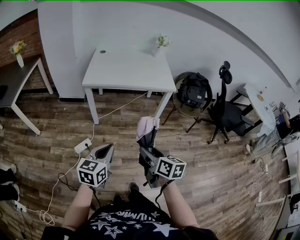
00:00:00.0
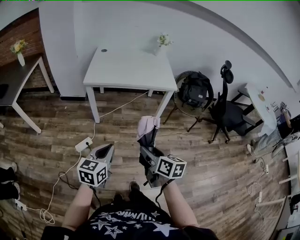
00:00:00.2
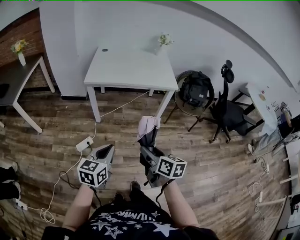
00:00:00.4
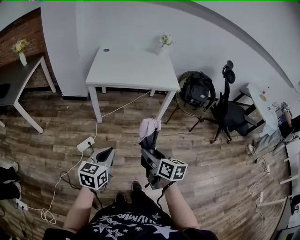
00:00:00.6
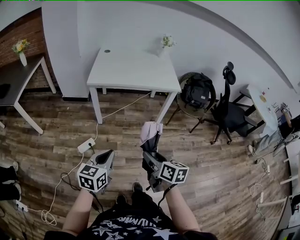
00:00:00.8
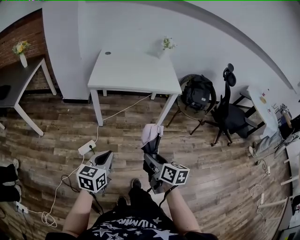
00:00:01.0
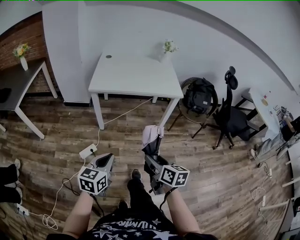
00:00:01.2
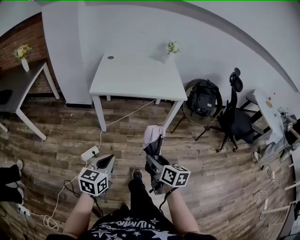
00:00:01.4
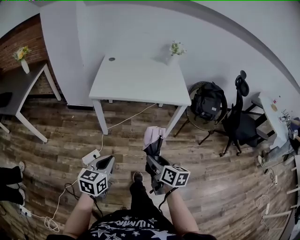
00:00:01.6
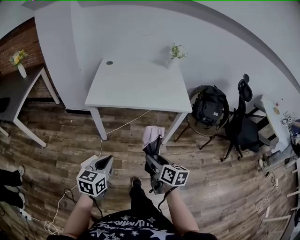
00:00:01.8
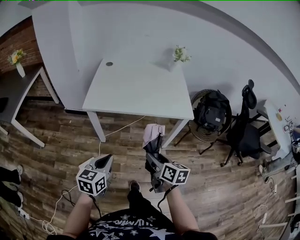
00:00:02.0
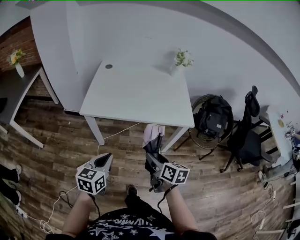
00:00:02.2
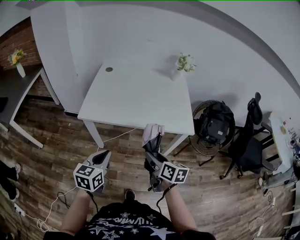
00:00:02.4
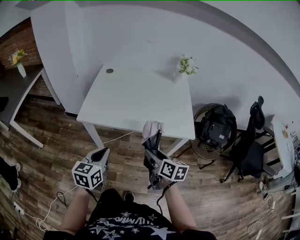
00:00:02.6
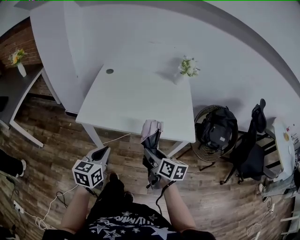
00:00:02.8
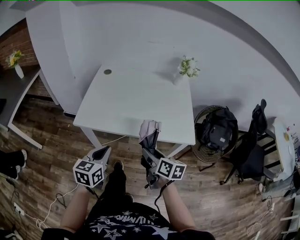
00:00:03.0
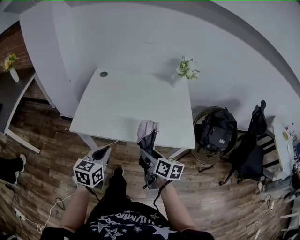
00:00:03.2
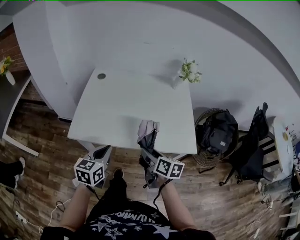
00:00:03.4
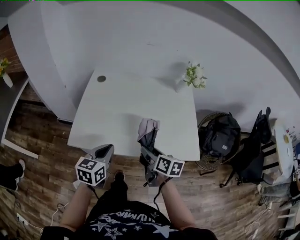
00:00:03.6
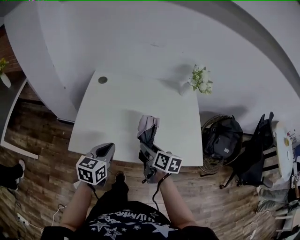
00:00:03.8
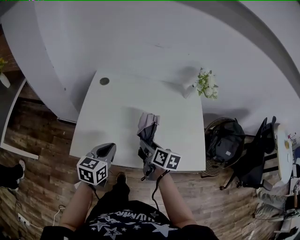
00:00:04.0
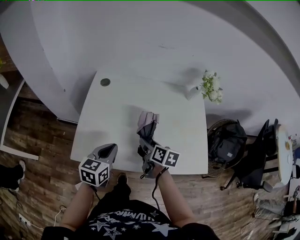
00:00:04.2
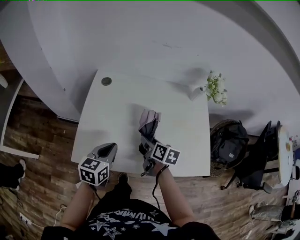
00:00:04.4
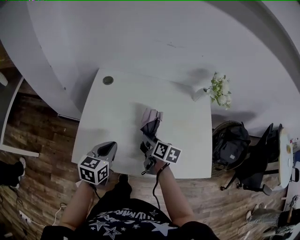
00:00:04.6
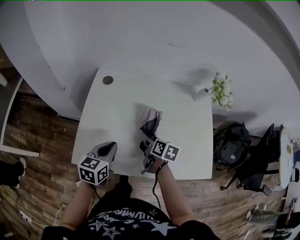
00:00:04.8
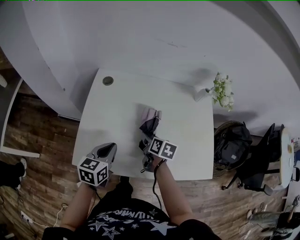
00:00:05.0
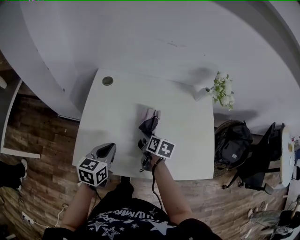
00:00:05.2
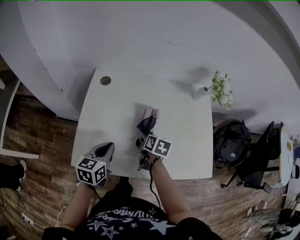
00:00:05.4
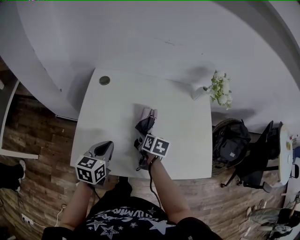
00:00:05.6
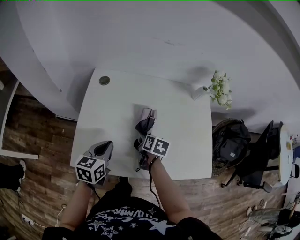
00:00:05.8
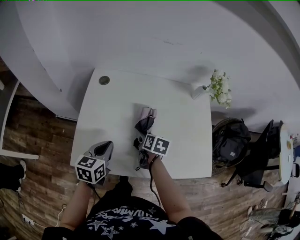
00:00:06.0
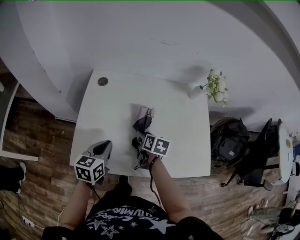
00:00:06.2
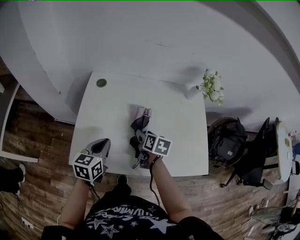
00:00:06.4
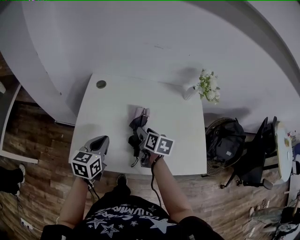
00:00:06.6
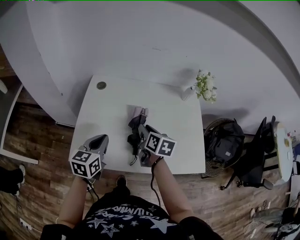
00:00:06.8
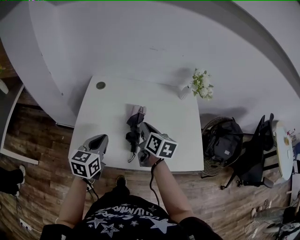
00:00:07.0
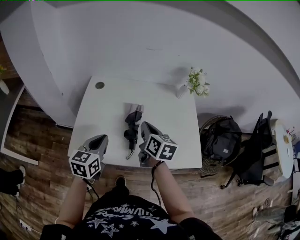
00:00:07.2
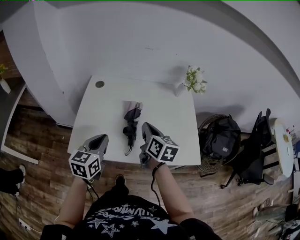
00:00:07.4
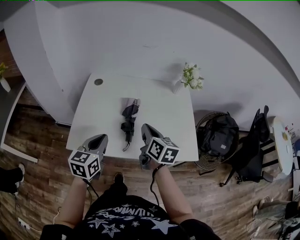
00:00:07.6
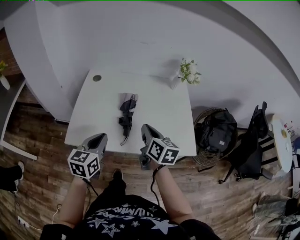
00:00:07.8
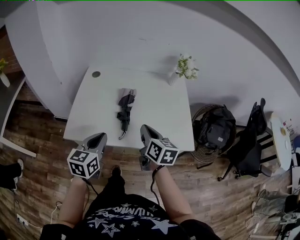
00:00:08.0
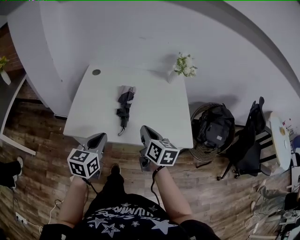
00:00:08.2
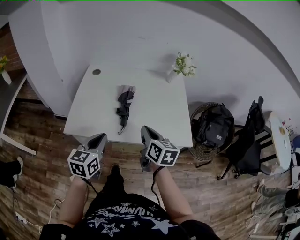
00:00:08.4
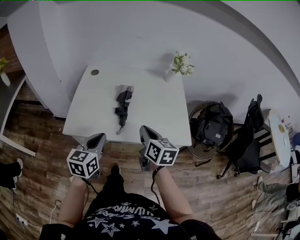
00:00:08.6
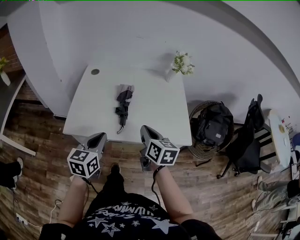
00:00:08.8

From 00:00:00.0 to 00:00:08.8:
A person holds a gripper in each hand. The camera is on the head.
From 00:00:00.0 to 00:00:01.4: The left gripper ends up about 5 cm from where it was. Meanwhile the right gripper ends up approximately 5 cm from where it was.
From 00:00:01.4 to 00:00:03.0: The two grippers go approximately 35 cm forward.
From 00:00:03.0 to 00:00:04.4: The two grippers go about 25 cm forward.
From 00:00:04.4 to 00:00:05.8: The right gripper goes some 5 cm downward.
From 00:00:05.8 to 00:00:07.4: The left gripper shifts some 10 cm upward and backward. Meanwhile the right gripper shifts some 20 cm upward and backward, turns by roughly 30 degrees, and closes up.
From 00:00:07.4 to 00:00:08.8: The grippers both shift backward by approximately 10 cm.

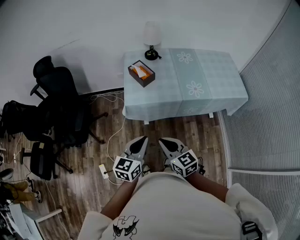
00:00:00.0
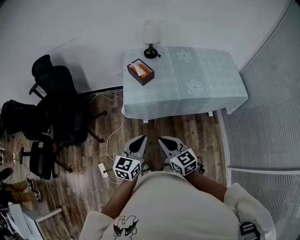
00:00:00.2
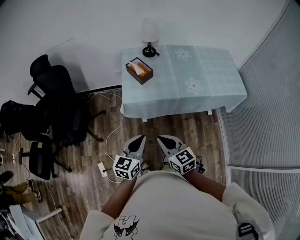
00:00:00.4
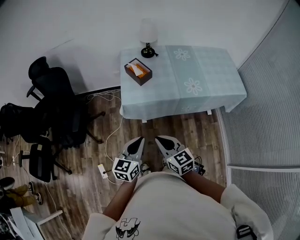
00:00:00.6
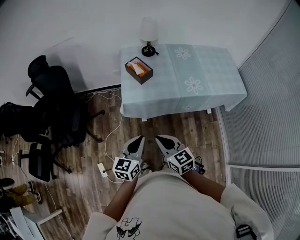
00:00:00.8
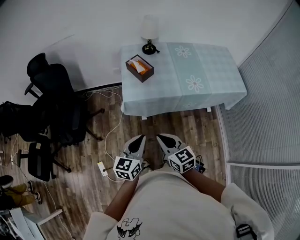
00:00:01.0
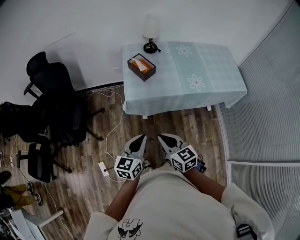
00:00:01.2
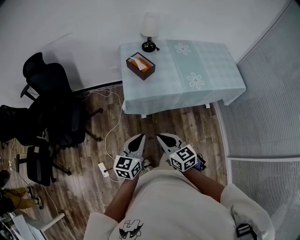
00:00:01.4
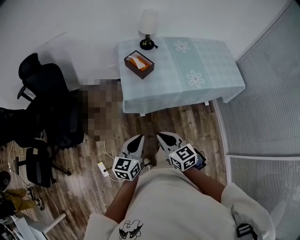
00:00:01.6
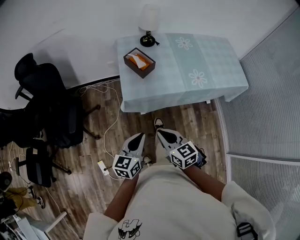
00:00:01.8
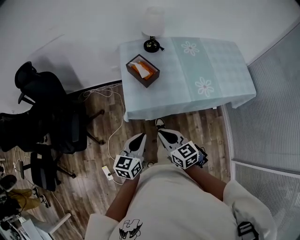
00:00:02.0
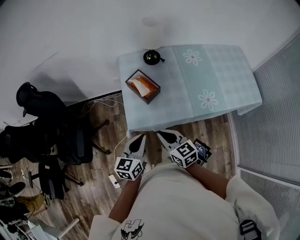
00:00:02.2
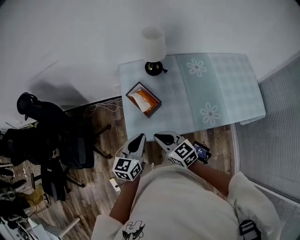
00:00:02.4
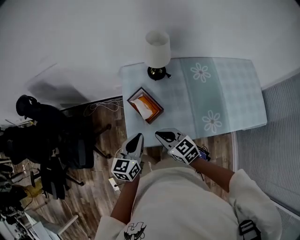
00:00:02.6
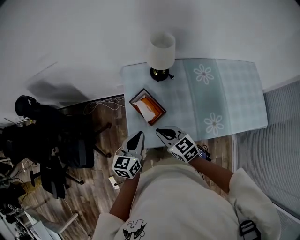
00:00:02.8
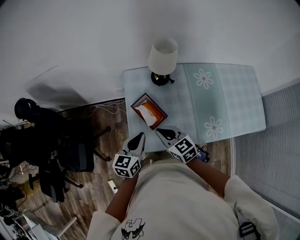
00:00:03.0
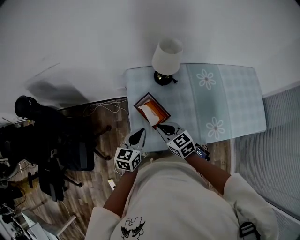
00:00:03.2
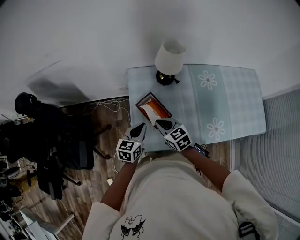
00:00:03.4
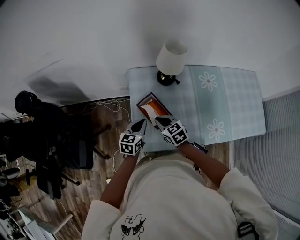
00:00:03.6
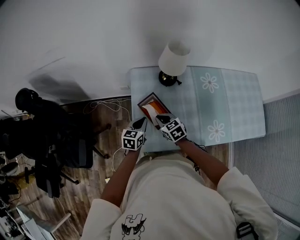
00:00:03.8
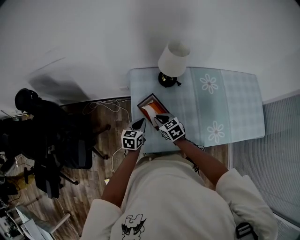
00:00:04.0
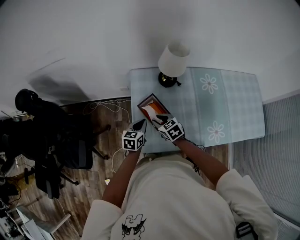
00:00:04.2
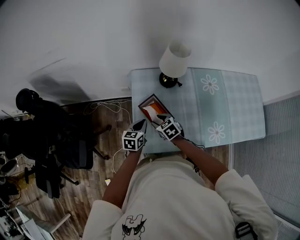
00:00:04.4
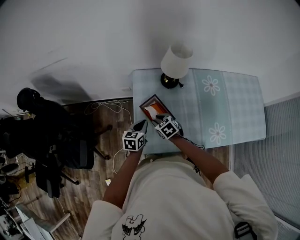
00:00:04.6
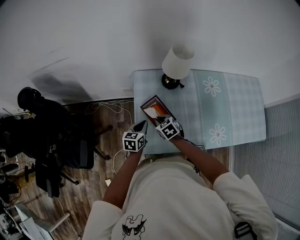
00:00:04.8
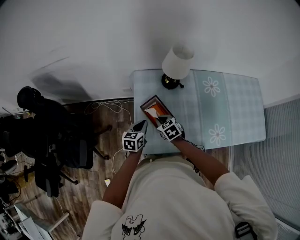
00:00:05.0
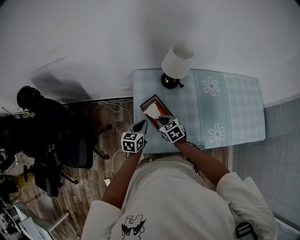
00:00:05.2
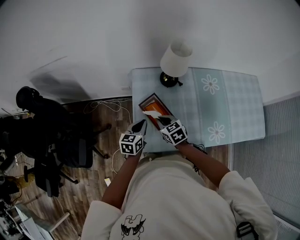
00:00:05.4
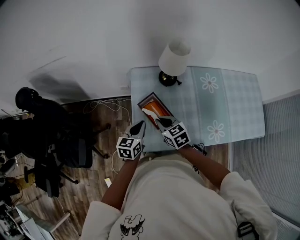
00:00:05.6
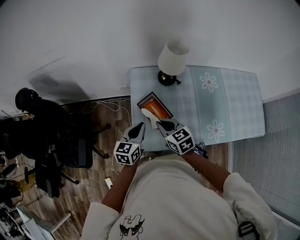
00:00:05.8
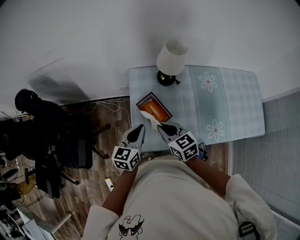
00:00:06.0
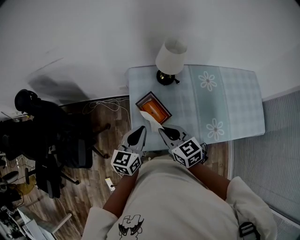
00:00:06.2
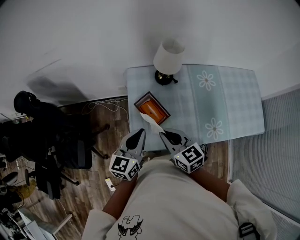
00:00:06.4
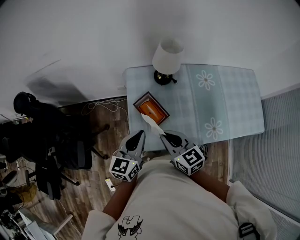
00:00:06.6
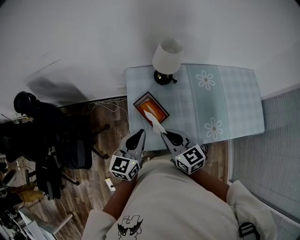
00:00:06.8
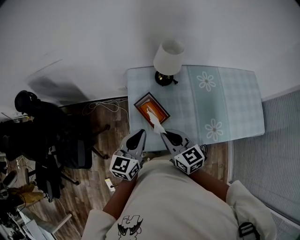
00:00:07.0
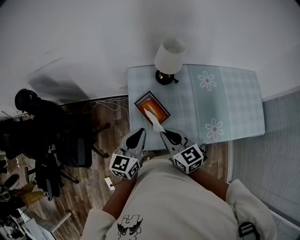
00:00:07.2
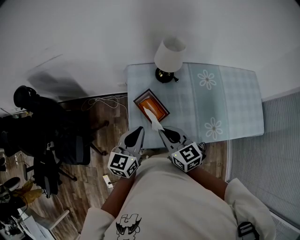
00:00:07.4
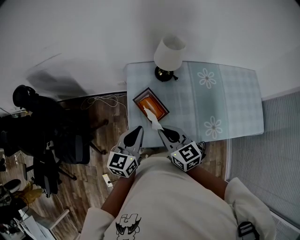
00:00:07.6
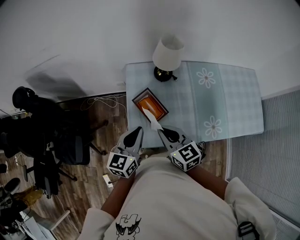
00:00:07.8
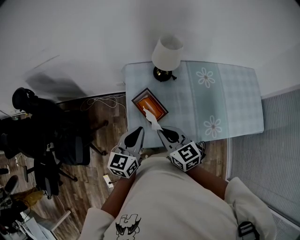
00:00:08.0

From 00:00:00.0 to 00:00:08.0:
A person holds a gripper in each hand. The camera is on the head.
From 00:00:00.0 to 00:00:01.6: Both grippers move to the left, roughly 5 cm.
From 00:00:01.6 to 00:00:03.2: The two grippers travel together, forward, some 40 cm.
From 00:00:03.2 to 00:00:04.8: The grippers both shift downward and forward by some 15 cm. The right gripper swivels approximately 20 degrees, and opens, then closes again.
From 00:00:04.8 to 00:00:06.4: The right gripper moves upward and backward, about 25 cm, and changes its angle by roughly 30 degrees. Meanwhile the left gripper travels upward by about 20 cm, and changes its angle by about 20 degrees.
From 00:00:06.4 to 00:00:08.0: The grippers make only small movements.

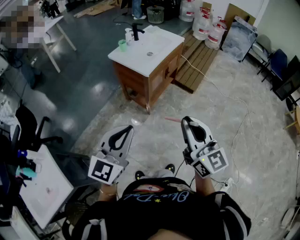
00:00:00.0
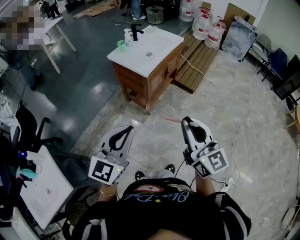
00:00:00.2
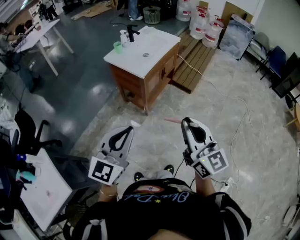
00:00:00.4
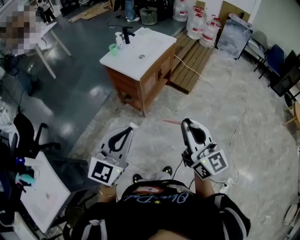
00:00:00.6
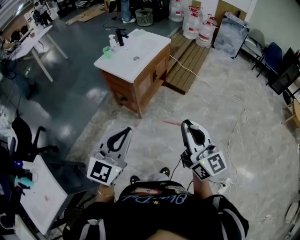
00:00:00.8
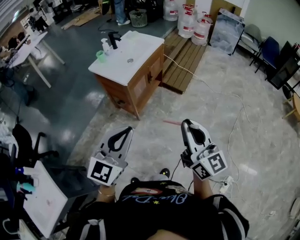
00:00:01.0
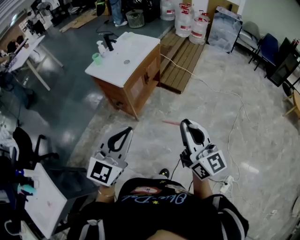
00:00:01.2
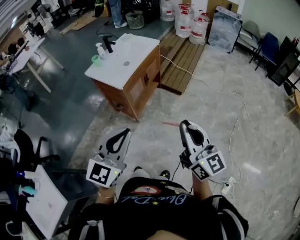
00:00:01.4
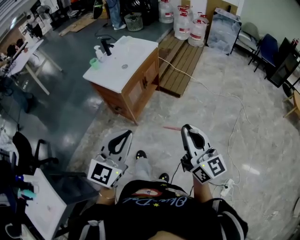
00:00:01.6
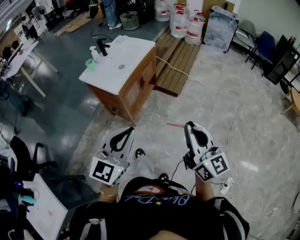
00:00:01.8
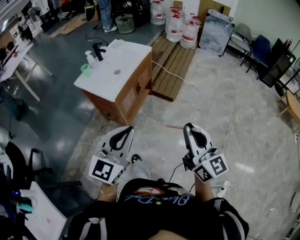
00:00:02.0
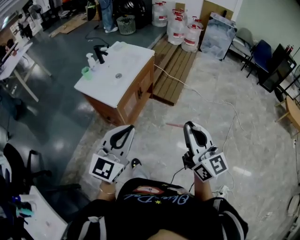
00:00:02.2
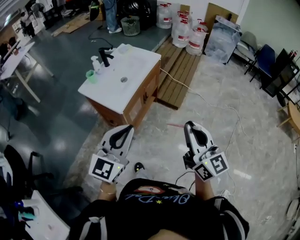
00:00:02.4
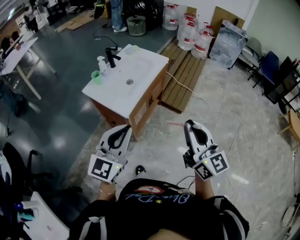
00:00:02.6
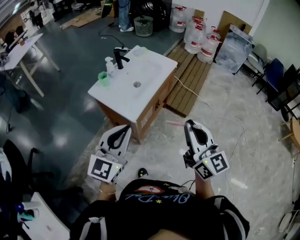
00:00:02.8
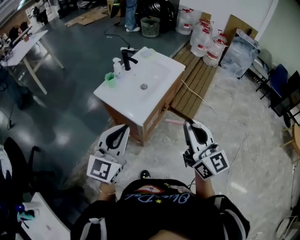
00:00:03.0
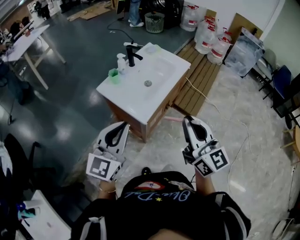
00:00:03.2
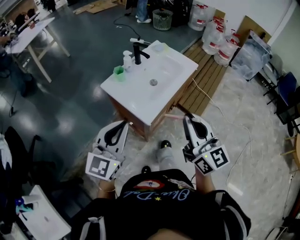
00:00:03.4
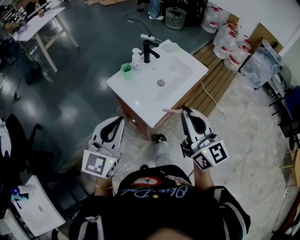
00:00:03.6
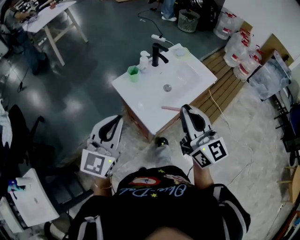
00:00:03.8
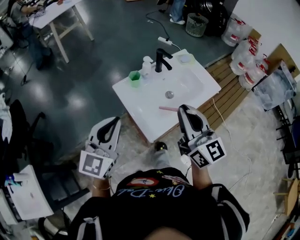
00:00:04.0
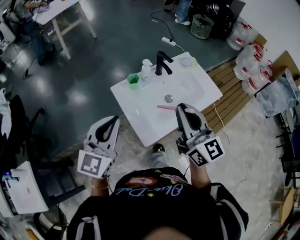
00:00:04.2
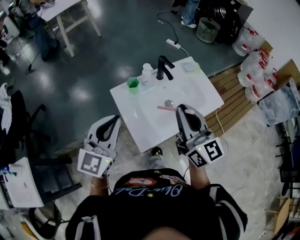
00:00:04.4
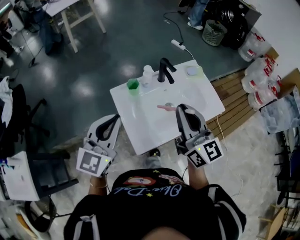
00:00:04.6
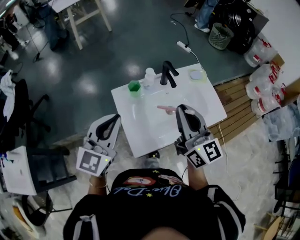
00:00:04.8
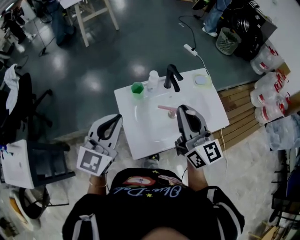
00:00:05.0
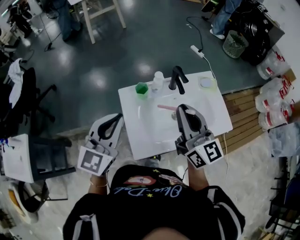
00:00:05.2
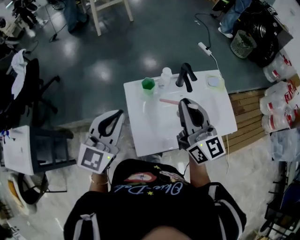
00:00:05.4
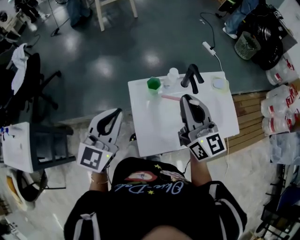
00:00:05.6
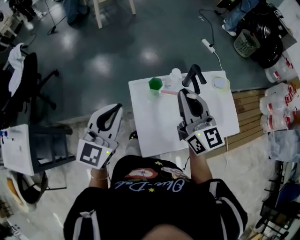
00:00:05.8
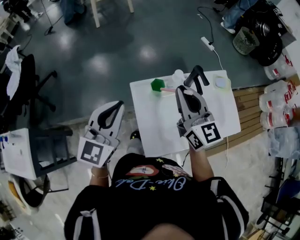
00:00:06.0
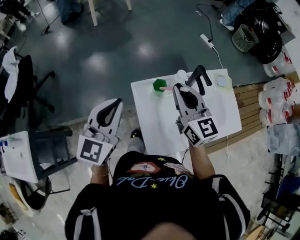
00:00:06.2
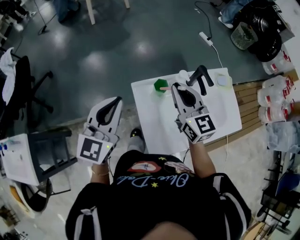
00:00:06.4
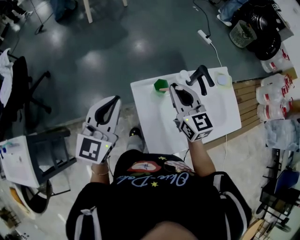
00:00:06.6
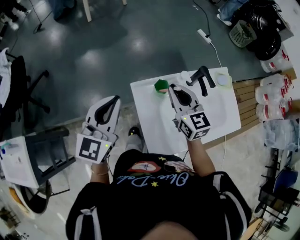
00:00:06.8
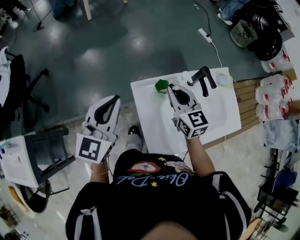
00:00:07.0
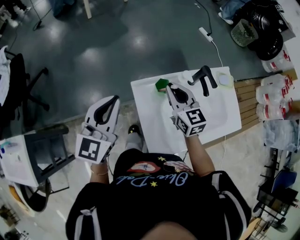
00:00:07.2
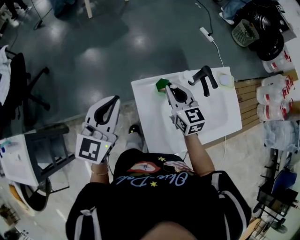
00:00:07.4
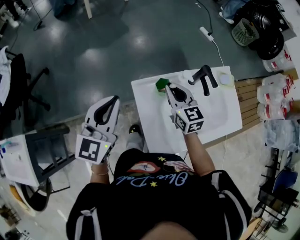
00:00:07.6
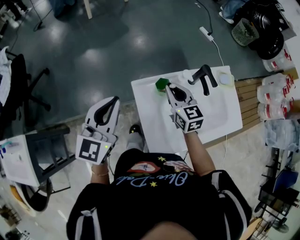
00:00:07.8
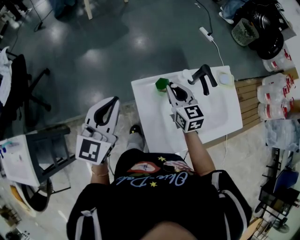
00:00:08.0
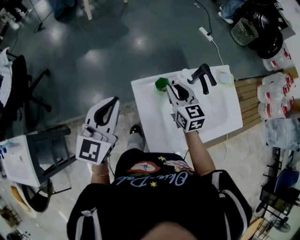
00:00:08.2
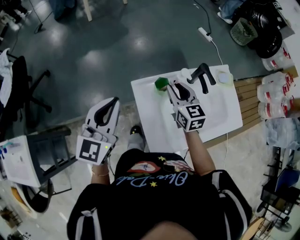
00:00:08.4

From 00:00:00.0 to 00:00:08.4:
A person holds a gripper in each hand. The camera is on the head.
From 00:00:00.0 to 00:00:01.4: The right gripper is displaced to the right by approximately 15 cm, while the left gripper goes roughly 15 cm to the right and forward.
From 00:00:01.4 to 00:00:02.8: The grippers both shift forward and to the left by some 30 cm.
From 00:00:02.8 to 00:00:04.2: The left gripper shifts by approximately 20 cm, and swivels about 30 degrees; the right gripper ends up some 30 cm from where it was, and turns by some 30 degrees.
From 00:00:04.2 to 00:00:05.6: The left gripper travels forward by approximately 5 cm. Meanwhile the right gripper is displaced forward by approximately 15 cm.
From 00:00:05.6 to 00:00:07.0: The left gripper heads forward and to the left, covering roughly 10 cm, while the right gripper shifts about 20 cm downward, forward and to the left, and swivels some 20 degrees.
From 00:00:07.0 to 00:00:08.4: There are only small adjustments of the grippers.
